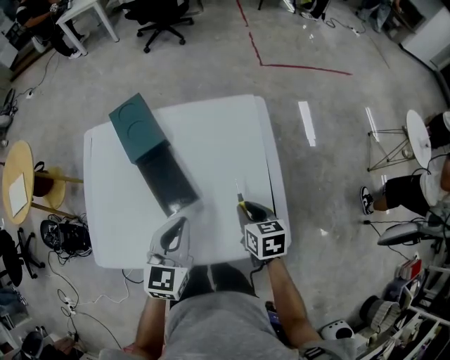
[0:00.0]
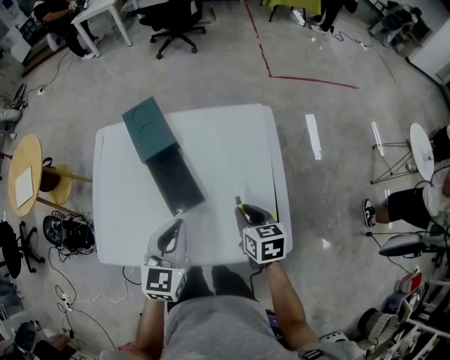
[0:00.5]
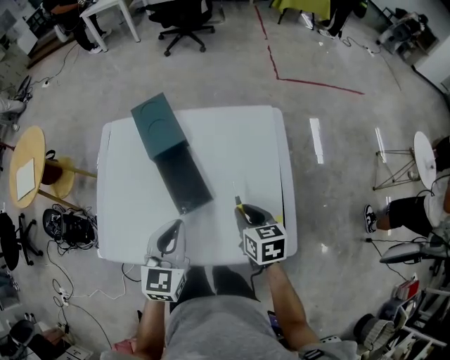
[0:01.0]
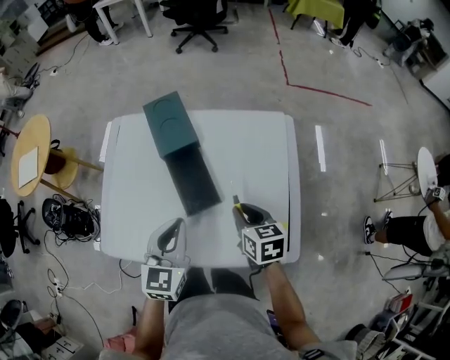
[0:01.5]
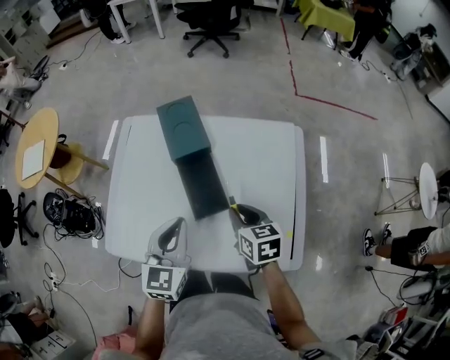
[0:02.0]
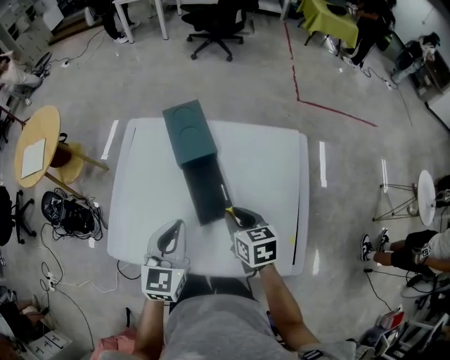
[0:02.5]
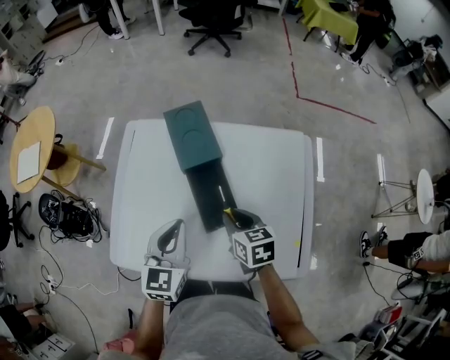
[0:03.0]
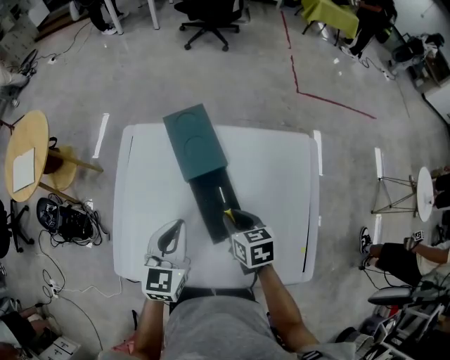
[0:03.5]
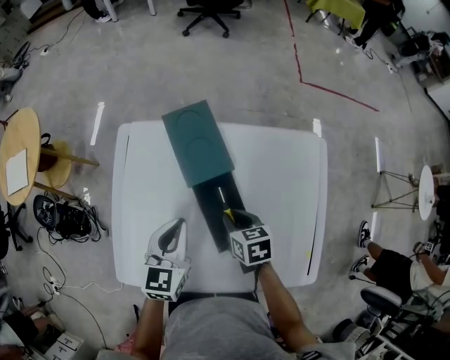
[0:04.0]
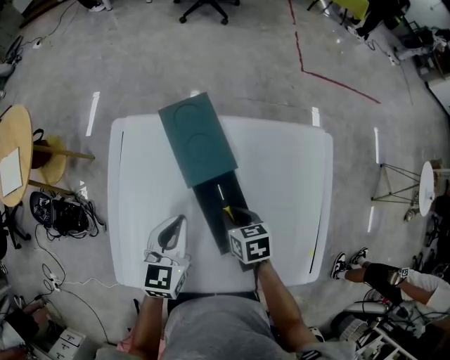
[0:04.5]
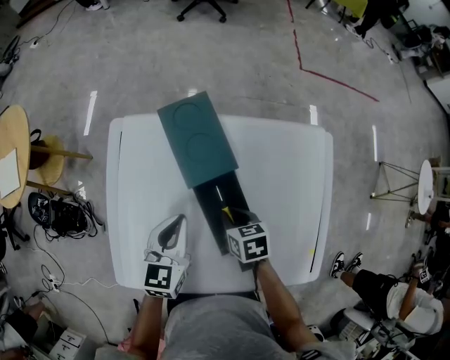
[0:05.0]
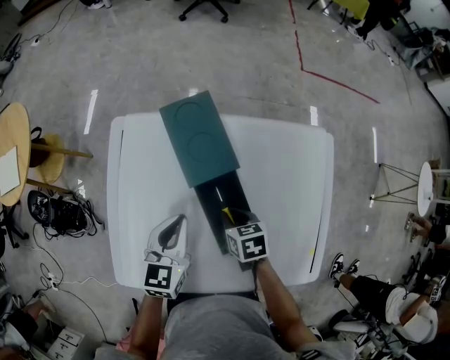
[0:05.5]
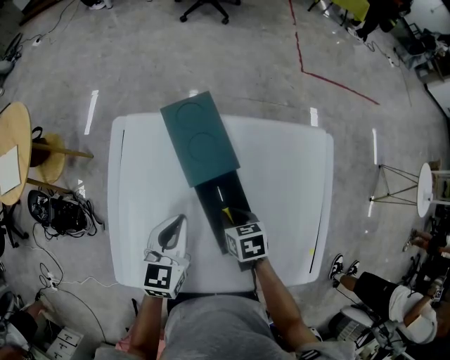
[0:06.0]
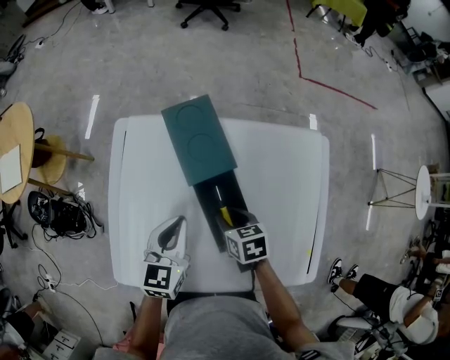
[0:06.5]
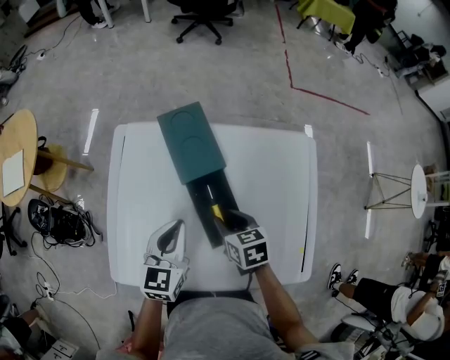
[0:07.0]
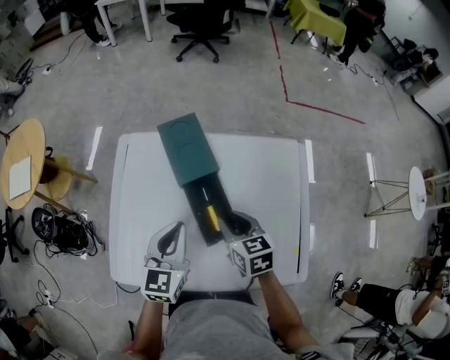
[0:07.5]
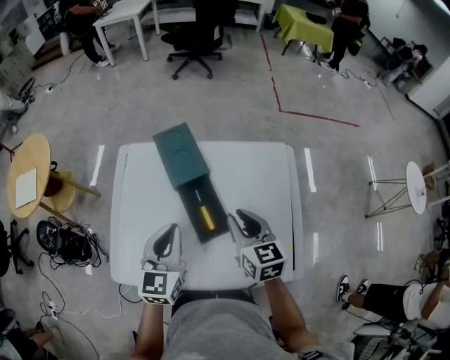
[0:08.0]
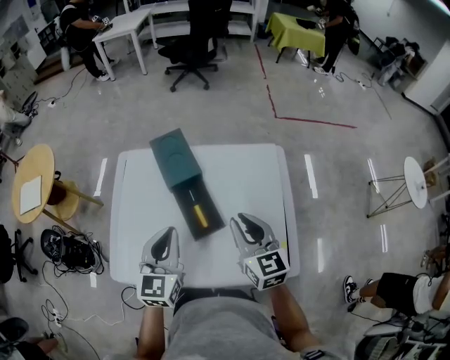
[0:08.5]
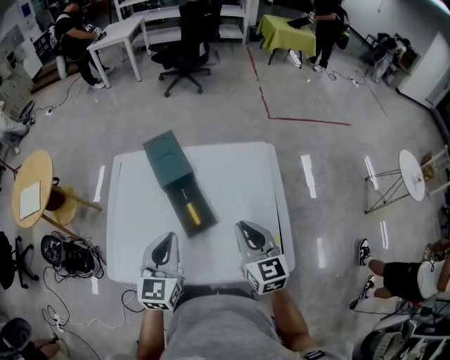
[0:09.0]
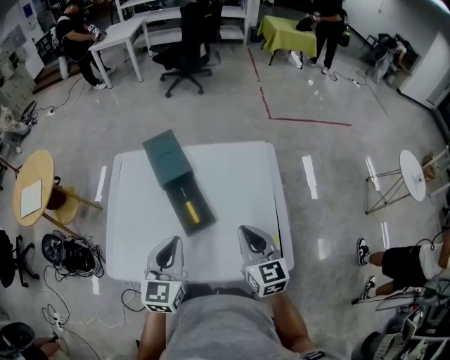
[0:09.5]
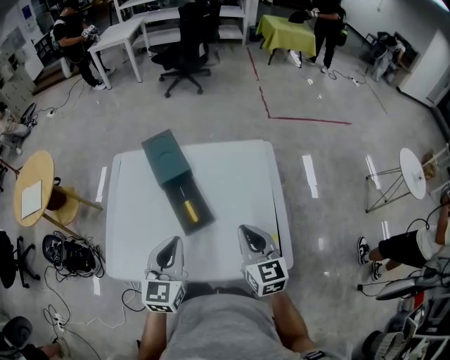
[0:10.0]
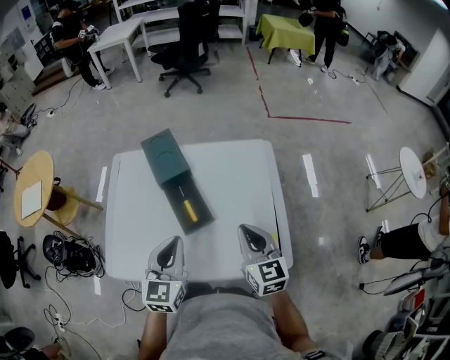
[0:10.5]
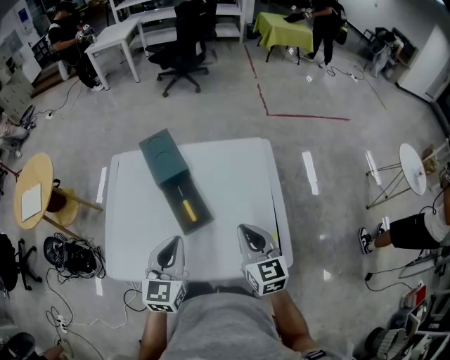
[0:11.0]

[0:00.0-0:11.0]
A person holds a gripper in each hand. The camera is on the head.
0:00.0 to 0:02.0: The right gripper moves to the left, upward and forward, approximately 15 cm, while the left gripper heads to the left, covering roughly 10 cm.
0:02.0 to 0:03.5: The grippers both shift forward and to the left by roughly 10 cm.
0:03.5 to 0:05.5: The right gripper moves downward, about 10 cm; the left gripper goes roughly 10 cm downward and forward.
0:05.5 to 0:07.5: The right gripper shifts some 15 cm upward, and turns by roughly 20 degrees, while the left gripper is displaced upward and backward by some 10 cm.
0:07.5 to 0:09.0: The right gripper moves to the right, backward and upward, some 20 cm, swivels some 30 degrees, and closes its fingers; the left gripper moves backward, upward and to the right, approximately 10 cm.
0:09.0 to 0:11.0: The grippers stay close to where they were, moving slightly.

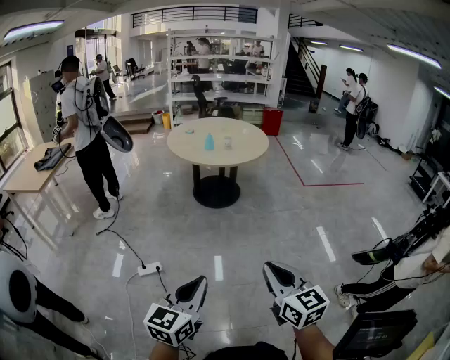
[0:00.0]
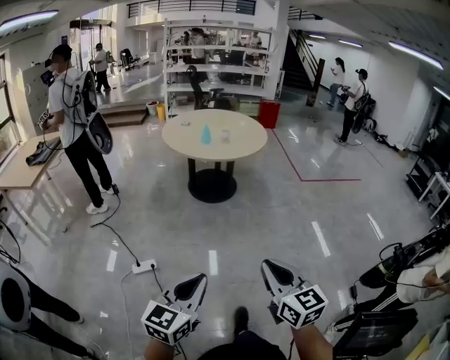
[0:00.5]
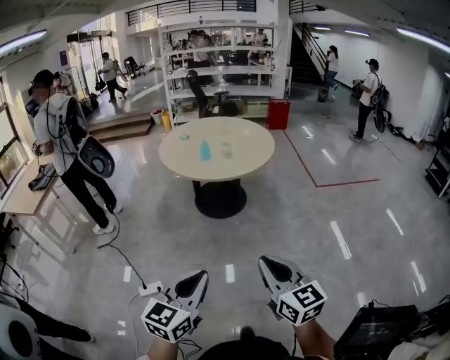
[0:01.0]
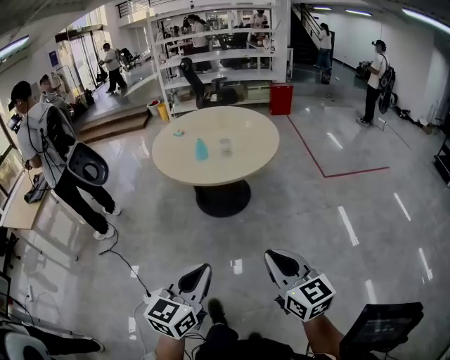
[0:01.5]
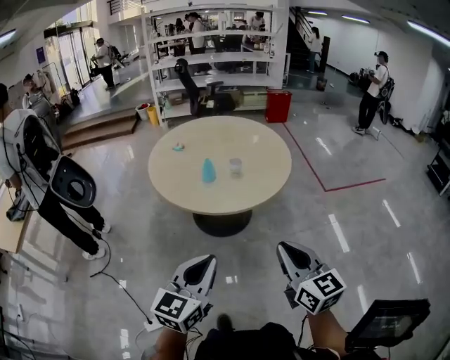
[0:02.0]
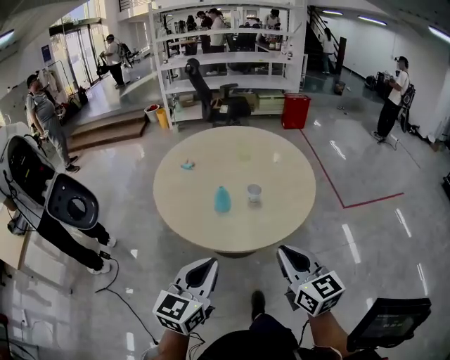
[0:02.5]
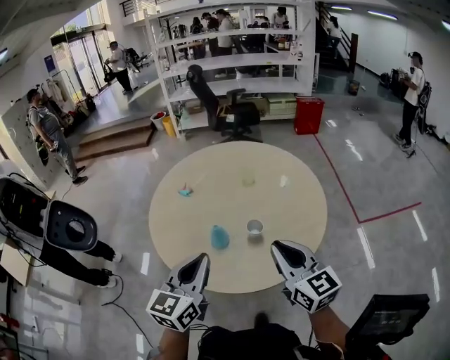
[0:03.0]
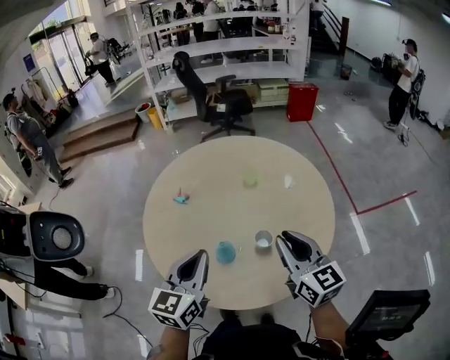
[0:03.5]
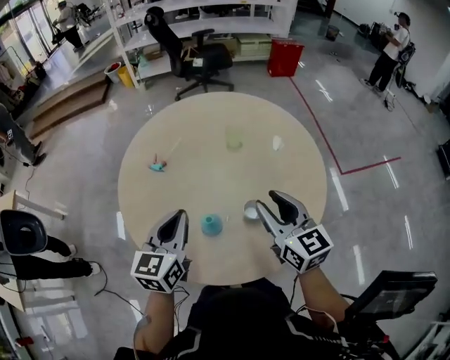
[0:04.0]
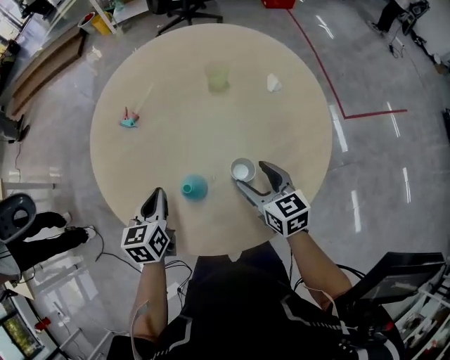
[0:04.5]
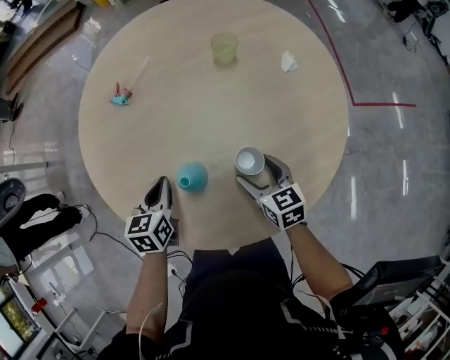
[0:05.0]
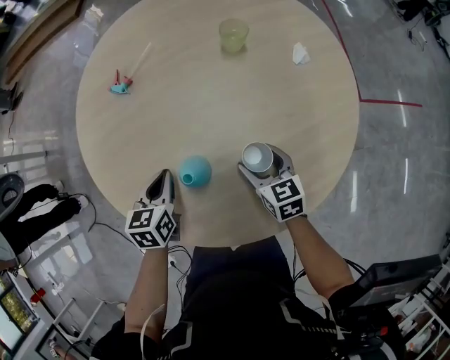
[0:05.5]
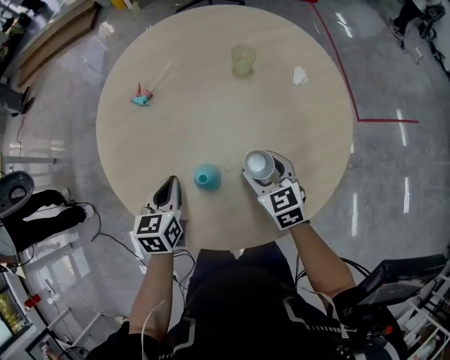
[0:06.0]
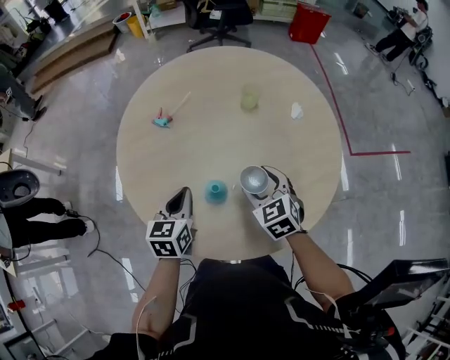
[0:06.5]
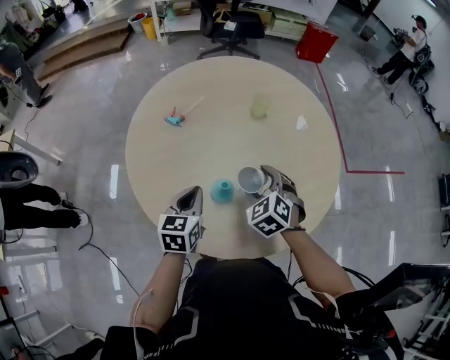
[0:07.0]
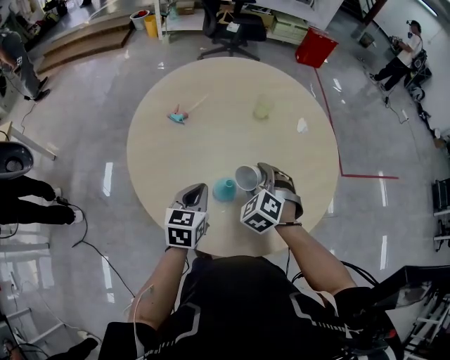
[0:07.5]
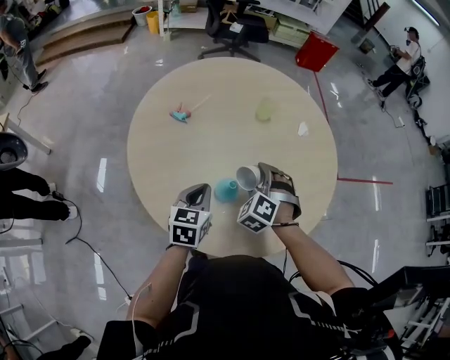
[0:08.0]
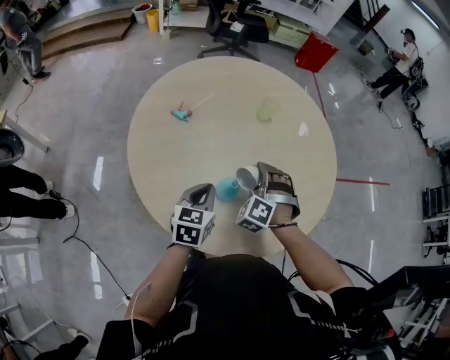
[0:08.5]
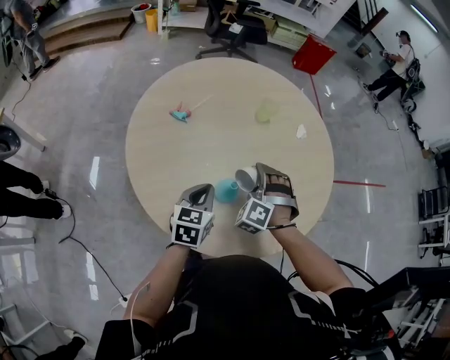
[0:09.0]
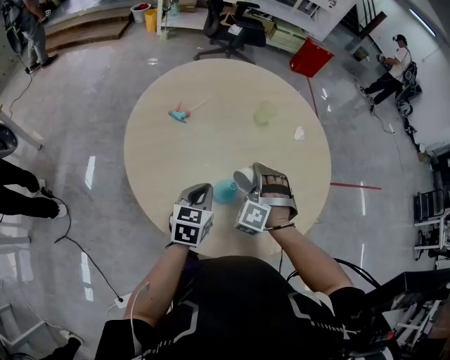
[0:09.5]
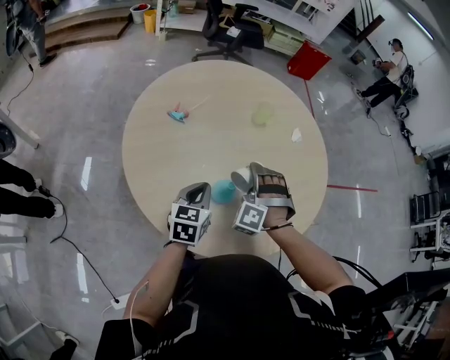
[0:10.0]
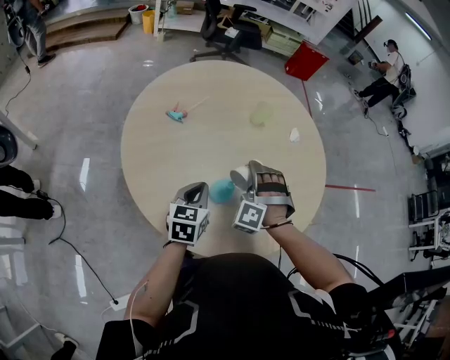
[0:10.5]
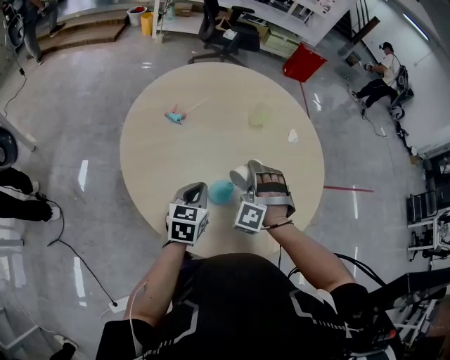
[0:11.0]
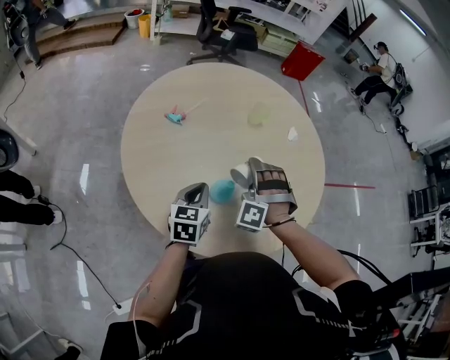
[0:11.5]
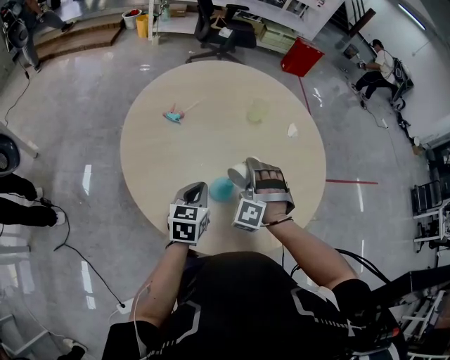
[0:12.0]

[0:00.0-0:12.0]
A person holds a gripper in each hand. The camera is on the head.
0:00.0 to 0:02.0: The pair of grippers is taken forward, roughly 60 cm.
0:02.0 to 0:04.0: The pair of grippers is taken forward, about 60 cm. The right gripper opens.
0:04.0 to 0:06.0: Both grippers travel together downward, some 20 cm. The left gripper rotates about 20 degrees. Meanwhile the right gripper swivels approximately 30 degrees, and opens up.
0:06.0 to 0:08.0: The right gripper is displaced to the left by about 5 cm, and twists roughly 50 degrees counterclockwise, seen from behind.
0:08.0 to 0:10.0: The right gripper changes its angle by about 20 degrees.
0:10.0 to 0:12.0: The grippers make only small movements.

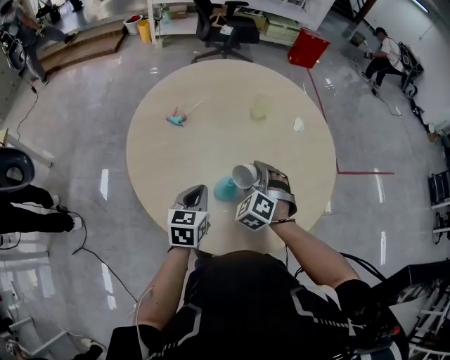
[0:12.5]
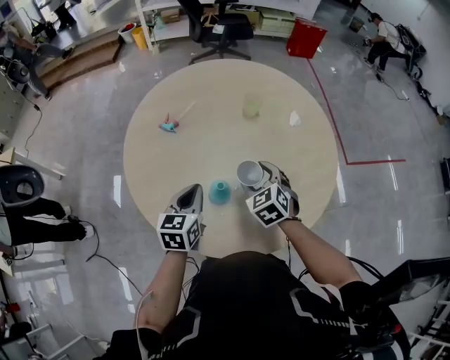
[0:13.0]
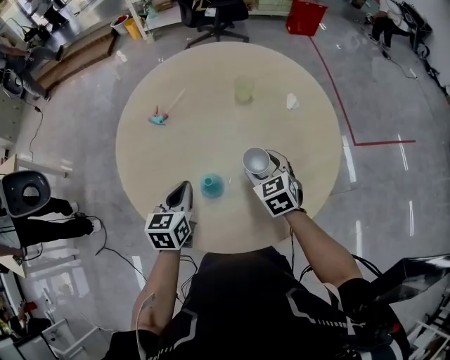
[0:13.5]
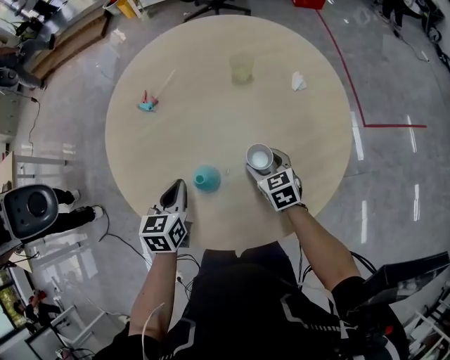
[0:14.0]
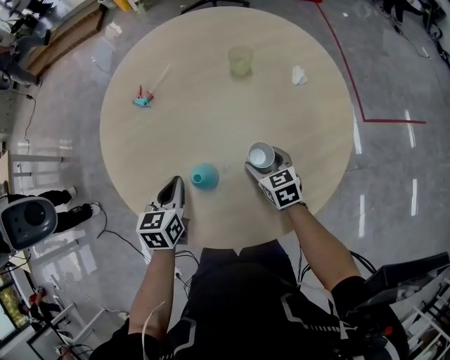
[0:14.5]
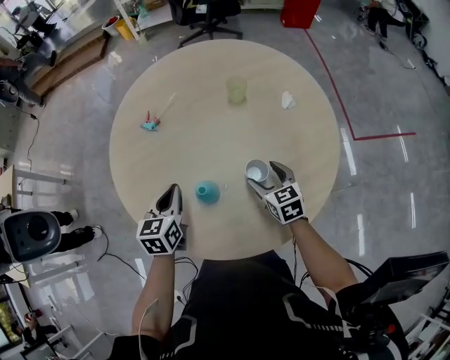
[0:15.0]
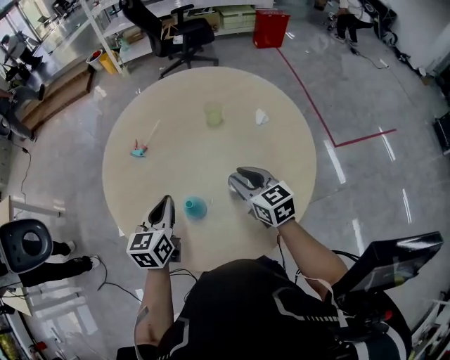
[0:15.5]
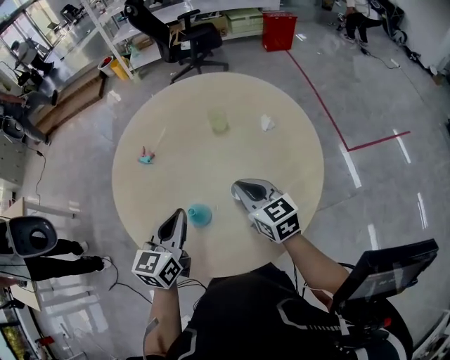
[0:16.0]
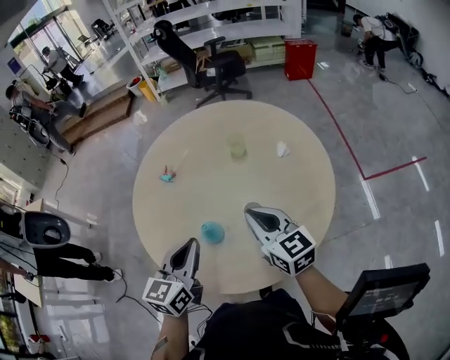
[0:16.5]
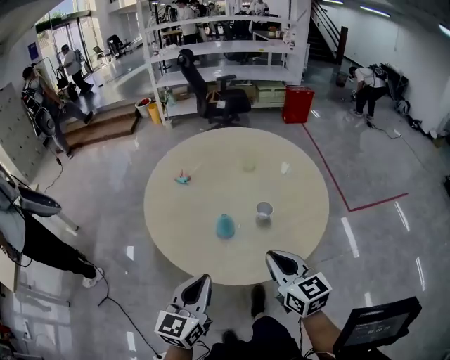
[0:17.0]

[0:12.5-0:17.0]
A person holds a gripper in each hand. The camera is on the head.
0:12.5 to 0:14.5: The left gripper moves some 5 cm, while the right gripper is displaced downward and to the right by about 15 cm, and rolls clockwise, seen from behind, by roughly 50 degrees.
0:14.5 to 0:17.0: The right gripper is displaced upward and backward by approximately 35 cm, turns by some 30 degrees, and closes. Meanwhile the left gripper shifts some 30 cm backward and upward, and turns by about 30 degrees.
